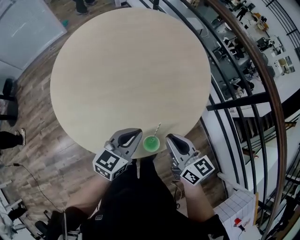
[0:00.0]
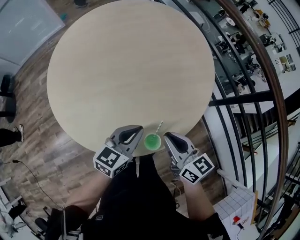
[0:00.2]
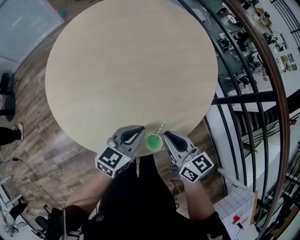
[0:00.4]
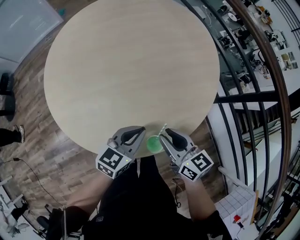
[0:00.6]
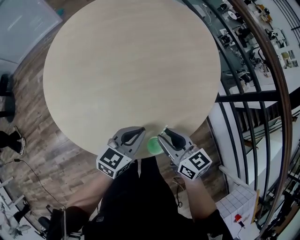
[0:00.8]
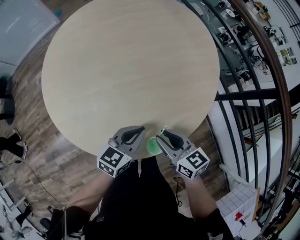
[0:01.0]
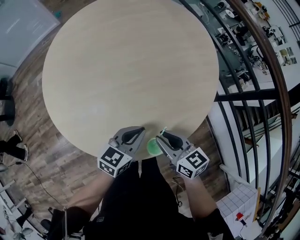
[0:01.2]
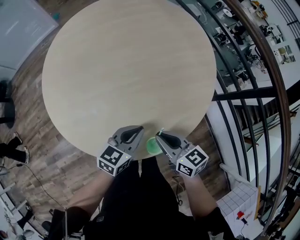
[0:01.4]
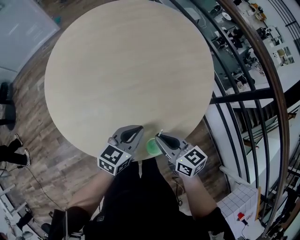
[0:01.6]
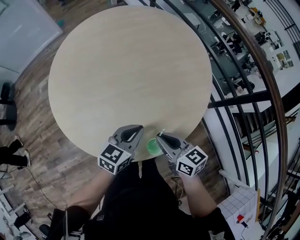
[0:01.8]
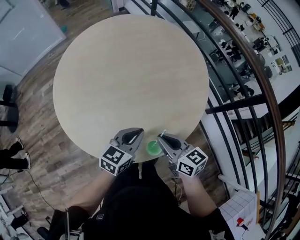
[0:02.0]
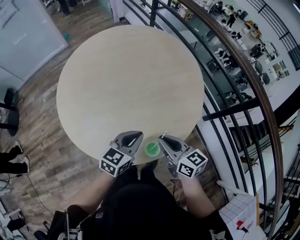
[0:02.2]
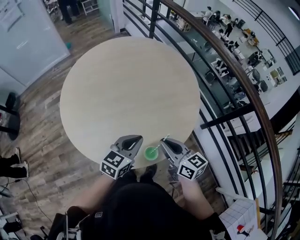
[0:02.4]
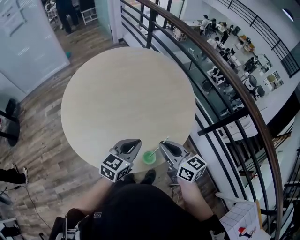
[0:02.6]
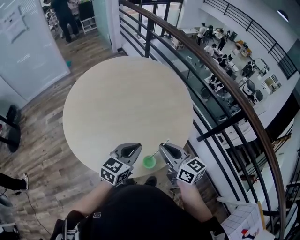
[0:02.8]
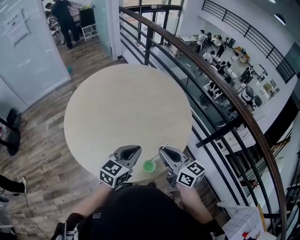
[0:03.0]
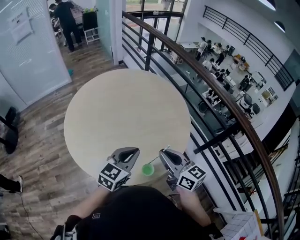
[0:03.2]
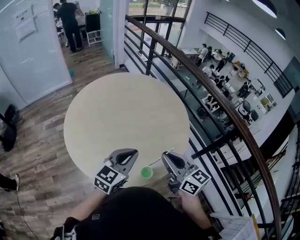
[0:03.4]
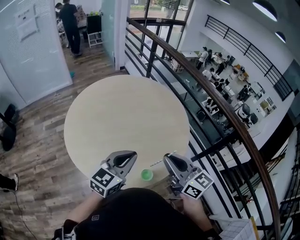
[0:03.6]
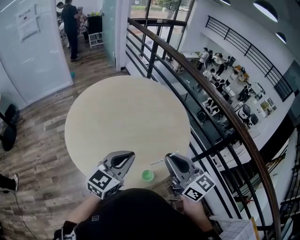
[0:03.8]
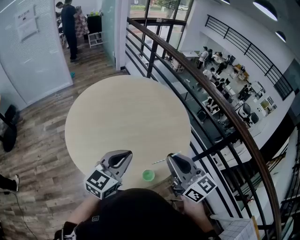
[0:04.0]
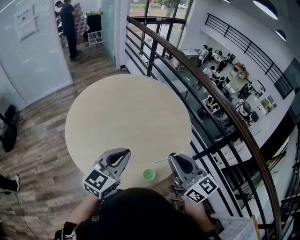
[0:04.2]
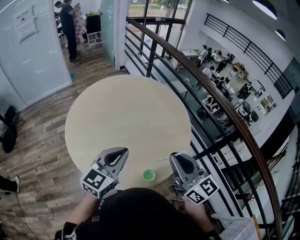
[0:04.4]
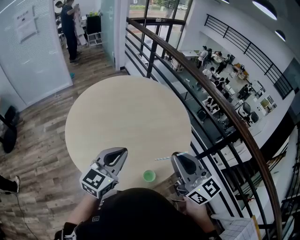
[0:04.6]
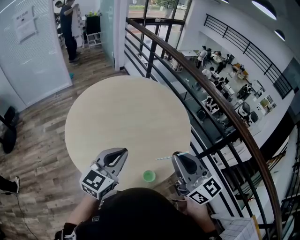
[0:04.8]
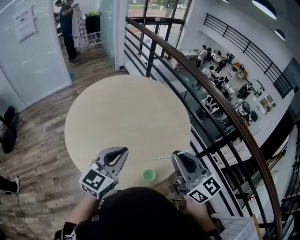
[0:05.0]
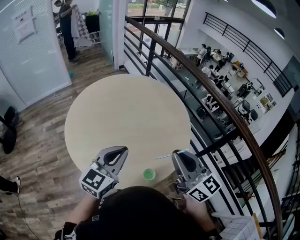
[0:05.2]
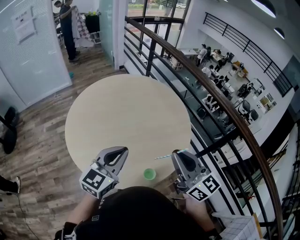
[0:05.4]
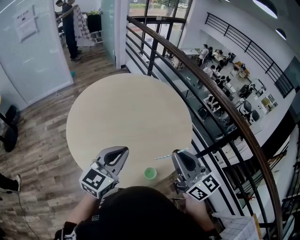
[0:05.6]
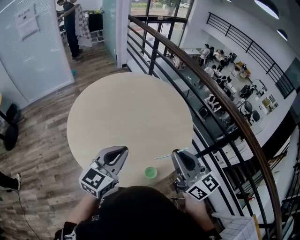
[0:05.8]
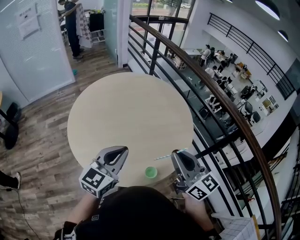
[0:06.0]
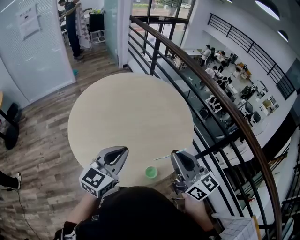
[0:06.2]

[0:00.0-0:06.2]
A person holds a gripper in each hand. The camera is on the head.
0.0 to 1.6 s: The two grippers go some 5 cm downward. The right gripper opens, then closes once more.
1.6 to 3.2 s: The grippers both shift upward by about 20 cm. The right gripper rotates roughly 20 degrees.
3.2 to 4.6 s: The right gripper travels upward by about 10 cm. The left gripper travels upward and to the left by roughly 10 cm.
4.6 to 6.2 s: There are only small adjustments of the grippers.

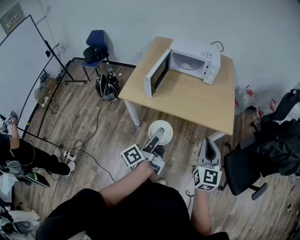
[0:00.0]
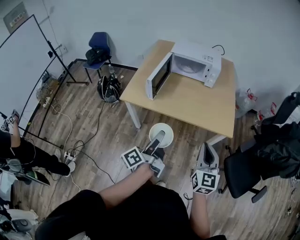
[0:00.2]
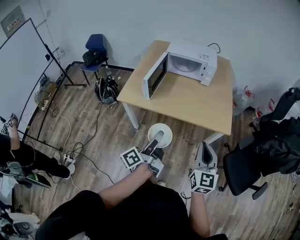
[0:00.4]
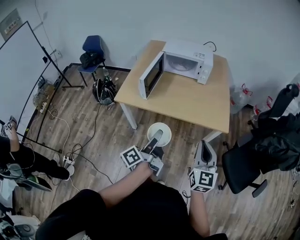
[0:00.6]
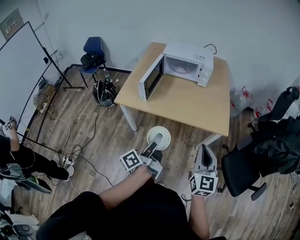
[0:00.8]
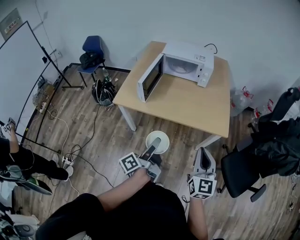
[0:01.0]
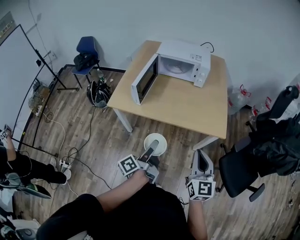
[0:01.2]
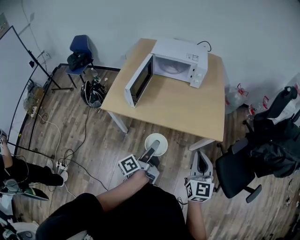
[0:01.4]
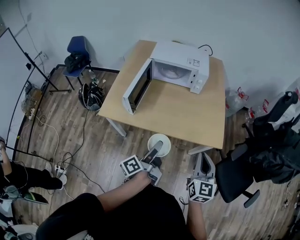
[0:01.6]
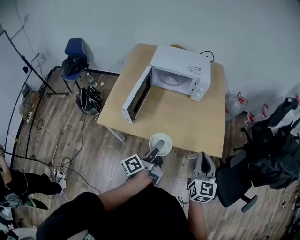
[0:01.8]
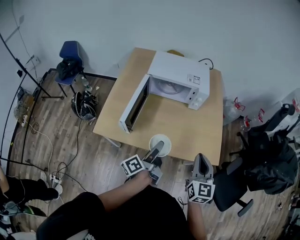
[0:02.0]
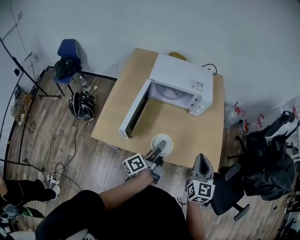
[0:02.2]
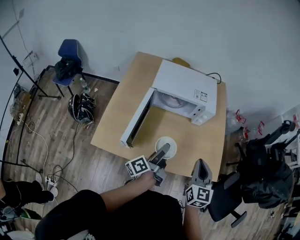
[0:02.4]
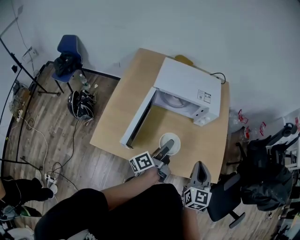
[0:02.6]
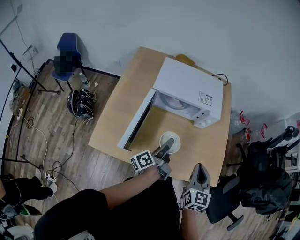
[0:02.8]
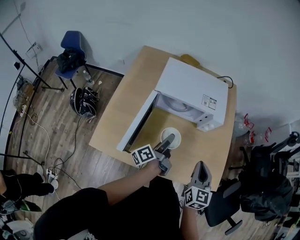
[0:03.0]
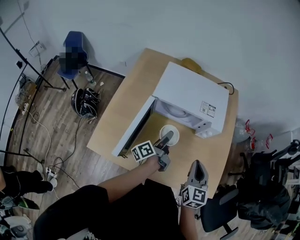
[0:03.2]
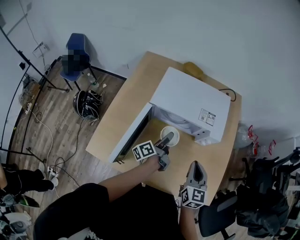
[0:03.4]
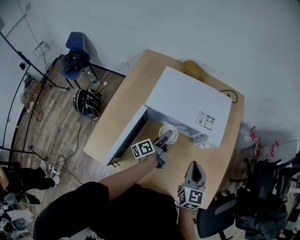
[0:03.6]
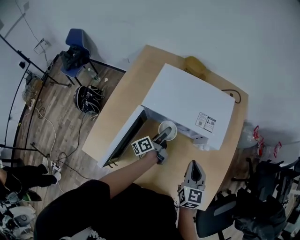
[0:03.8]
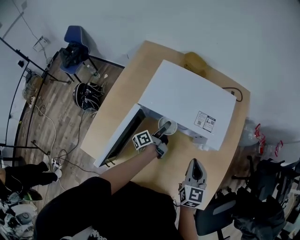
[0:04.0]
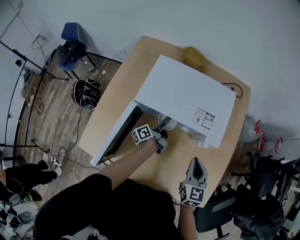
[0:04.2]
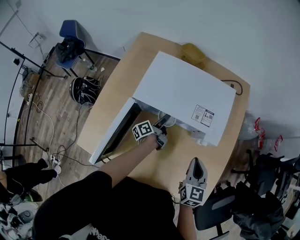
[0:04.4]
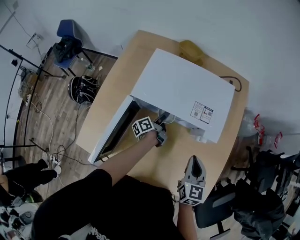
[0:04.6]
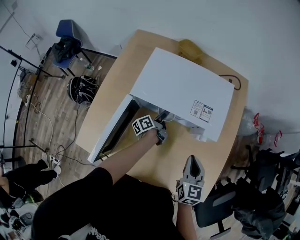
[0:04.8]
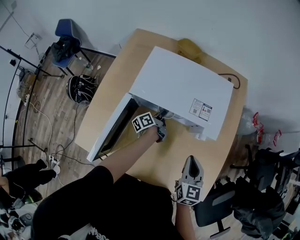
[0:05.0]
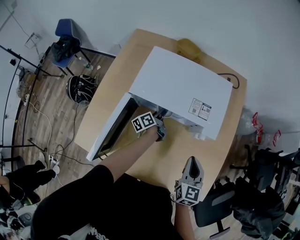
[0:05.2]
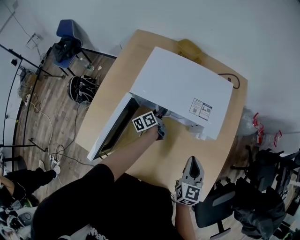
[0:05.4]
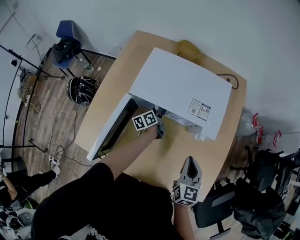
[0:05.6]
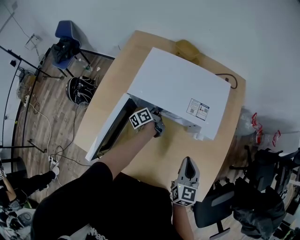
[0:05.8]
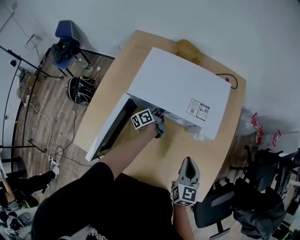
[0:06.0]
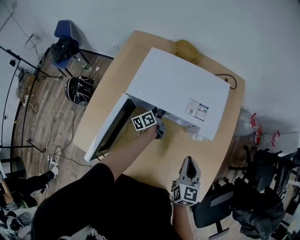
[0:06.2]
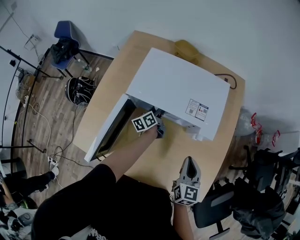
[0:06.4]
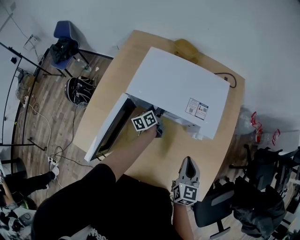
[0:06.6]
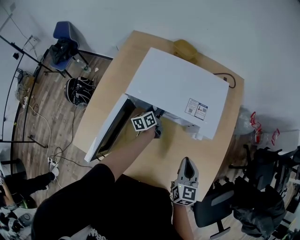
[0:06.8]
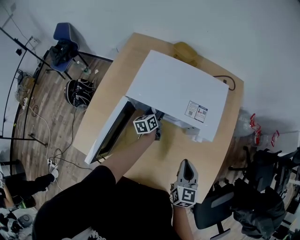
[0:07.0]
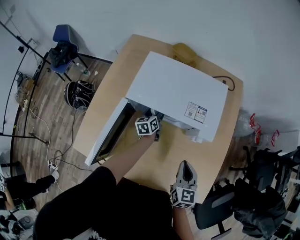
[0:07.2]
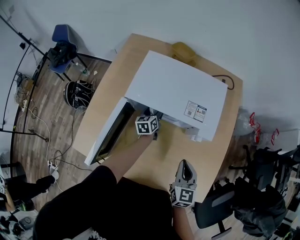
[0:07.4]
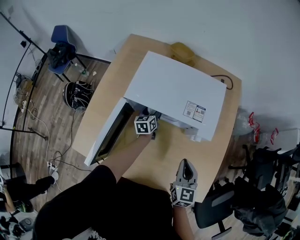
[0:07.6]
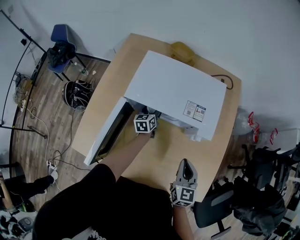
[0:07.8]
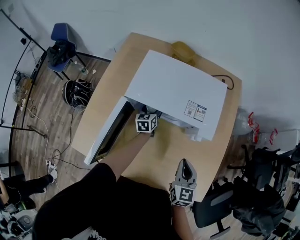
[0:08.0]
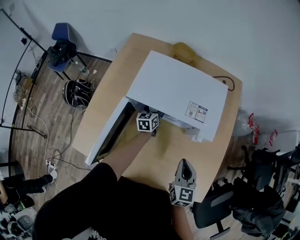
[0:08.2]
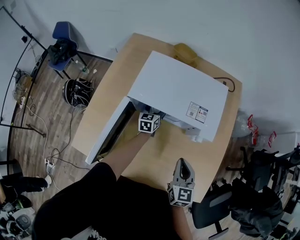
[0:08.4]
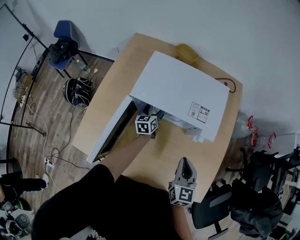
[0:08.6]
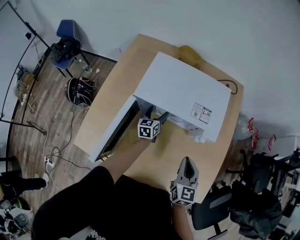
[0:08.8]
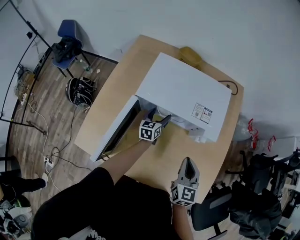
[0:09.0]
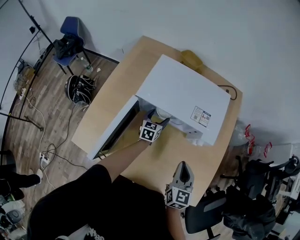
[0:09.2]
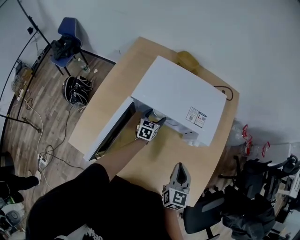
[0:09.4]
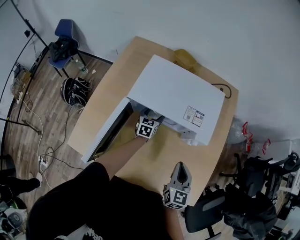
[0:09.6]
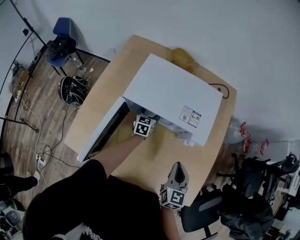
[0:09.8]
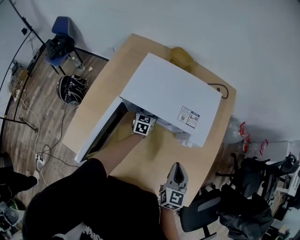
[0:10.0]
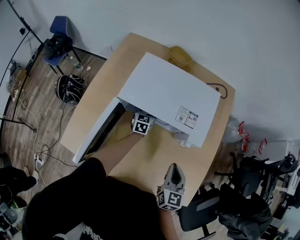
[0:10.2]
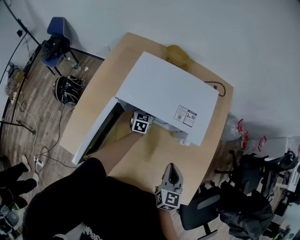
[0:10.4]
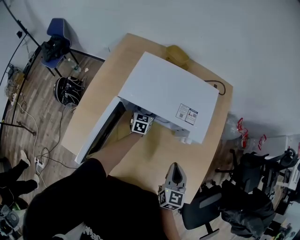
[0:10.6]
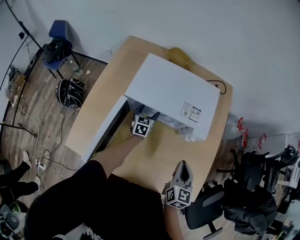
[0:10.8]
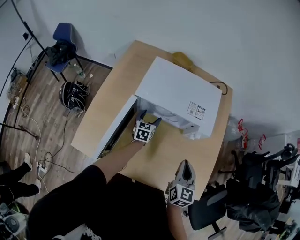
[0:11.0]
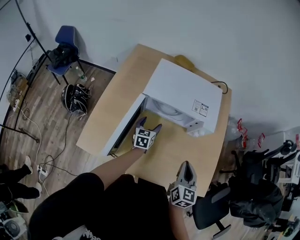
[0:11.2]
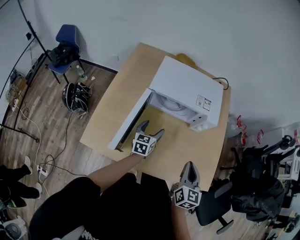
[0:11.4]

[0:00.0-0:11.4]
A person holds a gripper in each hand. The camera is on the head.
0.0 to 1.4 s: The right gripper moves roughly 5 cm, while the left gripper shifts approximately 10 cm downward, forward and to the right.
1.4 to 2.8 s: Both grippers move forward, about 30 cm.
2.8 to 4.2 s: The right gripper travels forward by roughly 20 cm; the left gripper travels forward and downward by about 30 cm.
4.2 to 5.6 s: The left gripper rotates some 30 degrees.
5.6 to 7.2 s: The left gripper changes its angle by about 20 degrees.
7.2 to 8.6 s: The grippers make only small movements.
8.6 to 10.0 s: The grippers make only small movements.
10.0 to 11.4 s: The left gripper travels backward and upward by some 25 cm. The right gripper goes about 15 cm backward, upward and to the left.

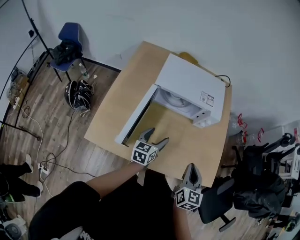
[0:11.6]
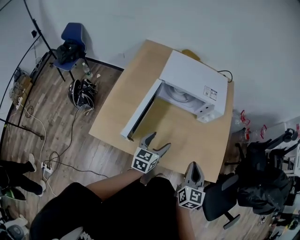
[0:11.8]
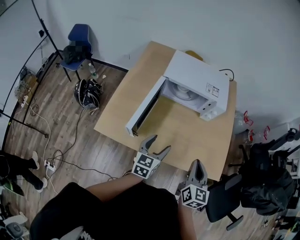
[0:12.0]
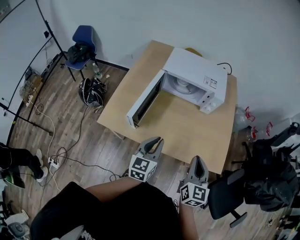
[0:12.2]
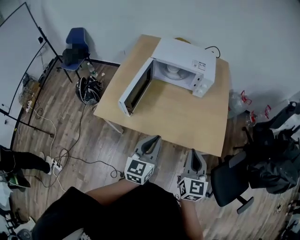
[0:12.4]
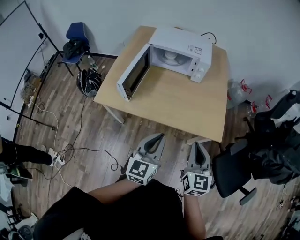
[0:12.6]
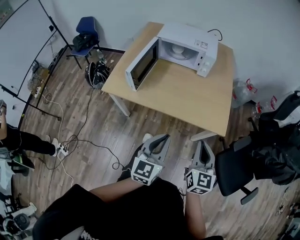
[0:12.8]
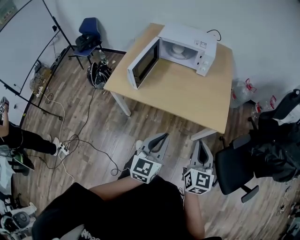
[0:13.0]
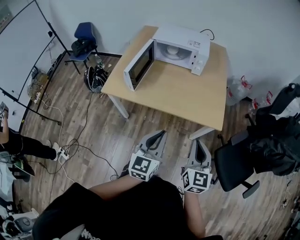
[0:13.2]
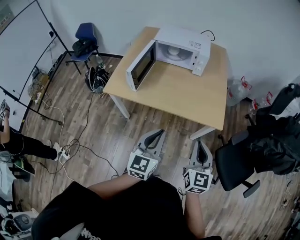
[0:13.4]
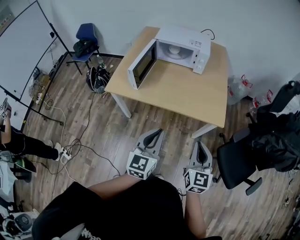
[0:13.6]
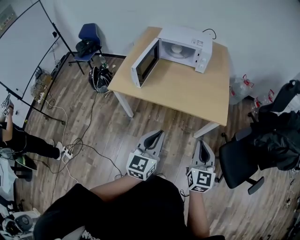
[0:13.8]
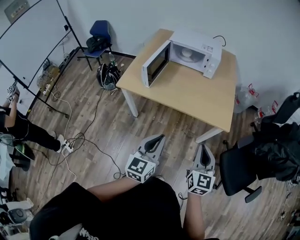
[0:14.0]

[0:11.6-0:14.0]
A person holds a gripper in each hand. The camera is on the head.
11.6 to 12.8 s: The two grippers go some 35 cm backward and to the right. The left gripper swivels approximately 20 degrees, and closes its fingers.
12.8 to 14.0 s: Both grippers travel together backward, roughly 10 cm.

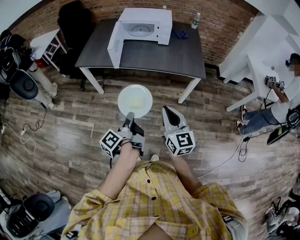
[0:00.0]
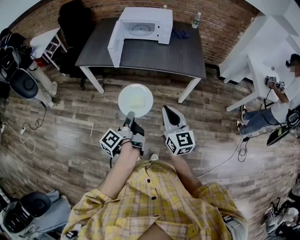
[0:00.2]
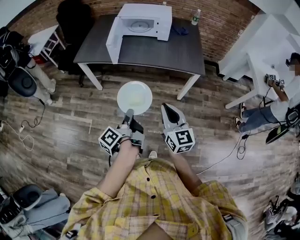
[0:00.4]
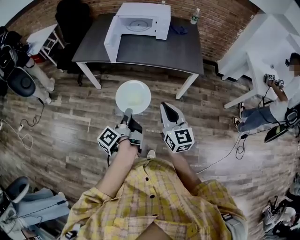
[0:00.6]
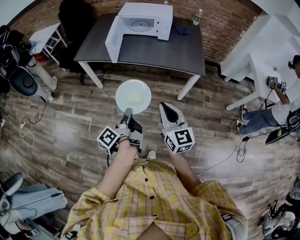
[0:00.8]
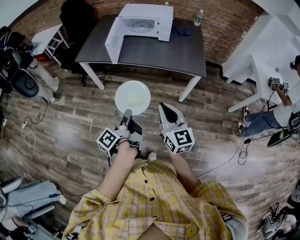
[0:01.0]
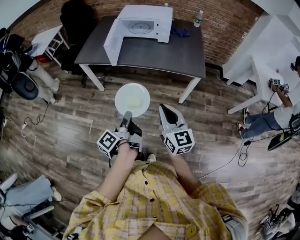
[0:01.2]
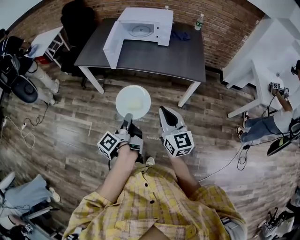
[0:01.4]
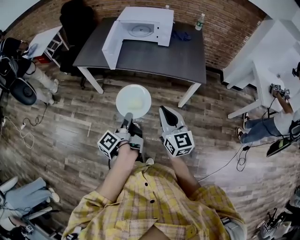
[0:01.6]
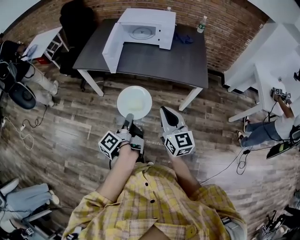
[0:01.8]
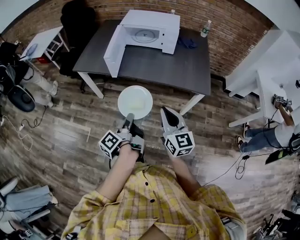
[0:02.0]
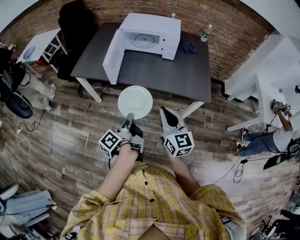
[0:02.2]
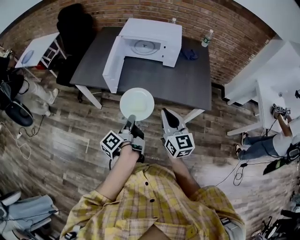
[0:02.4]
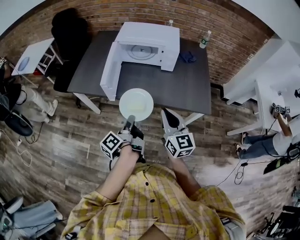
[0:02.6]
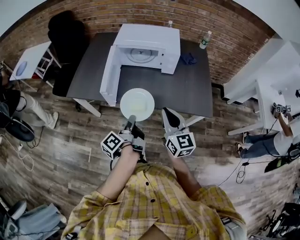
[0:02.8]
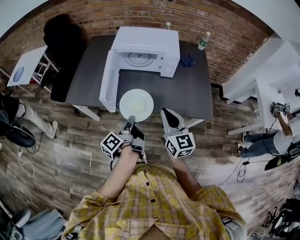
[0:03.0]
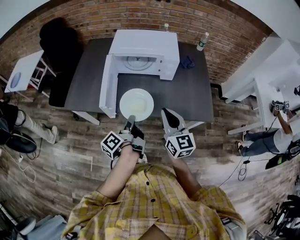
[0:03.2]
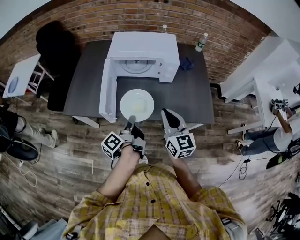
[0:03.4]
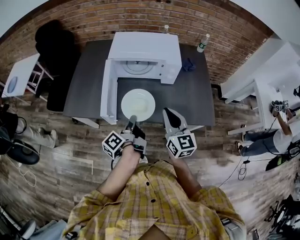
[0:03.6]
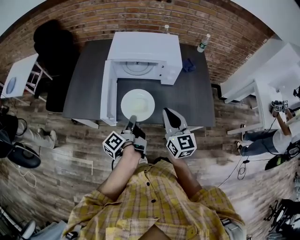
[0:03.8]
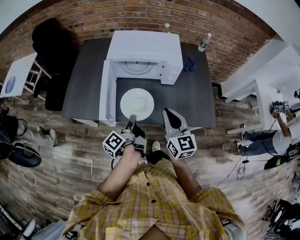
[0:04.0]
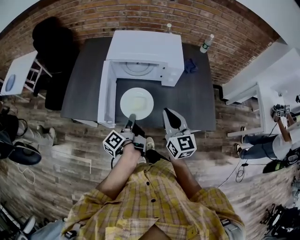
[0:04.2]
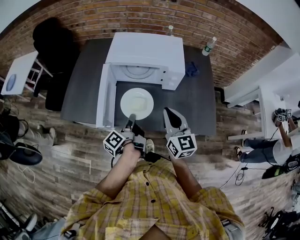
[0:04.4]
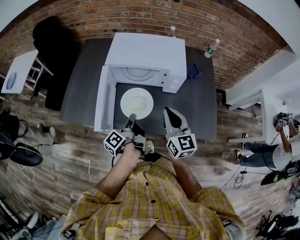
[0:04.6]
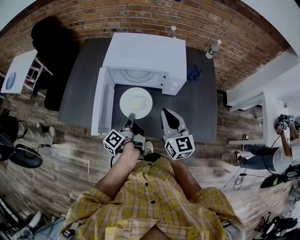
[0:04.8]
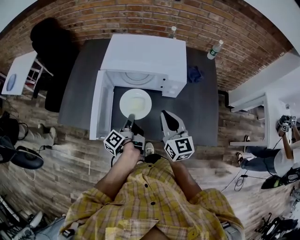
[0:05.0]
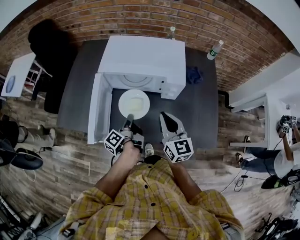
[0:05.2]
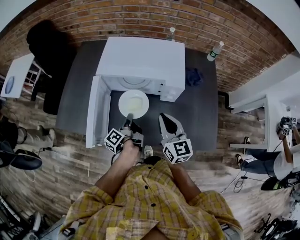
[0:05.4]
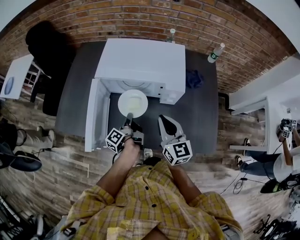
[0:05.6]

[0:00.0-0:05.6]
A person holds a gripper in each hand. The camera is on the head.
0.0 to 1.4 s: The right gripper changes place by roughly 5 cm.
1.4 to 2.8 s: The right gripper changes place by roughly 30 cm.
2.8 to 4.2 s: The right gripper changes place by some 15 cm.
4.2 to 5.6 s: The right gripper changes place by roughly 15 cm.
